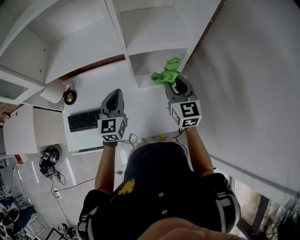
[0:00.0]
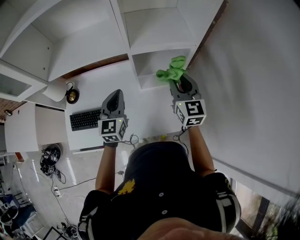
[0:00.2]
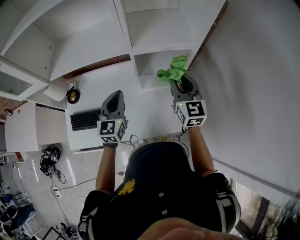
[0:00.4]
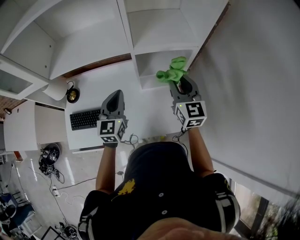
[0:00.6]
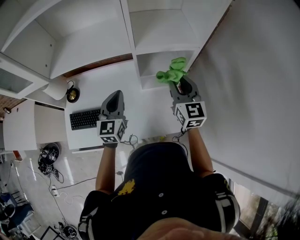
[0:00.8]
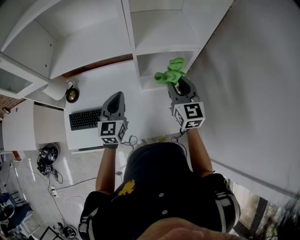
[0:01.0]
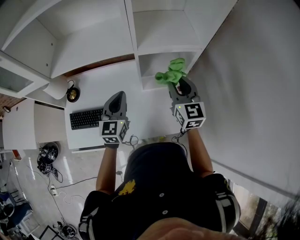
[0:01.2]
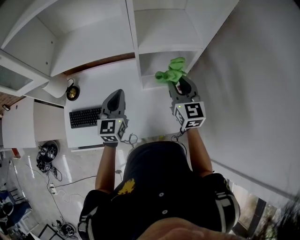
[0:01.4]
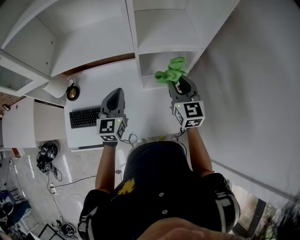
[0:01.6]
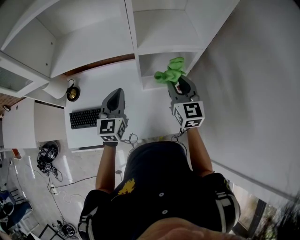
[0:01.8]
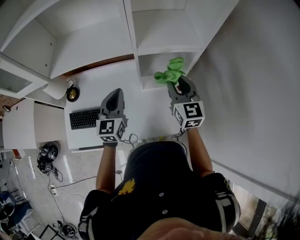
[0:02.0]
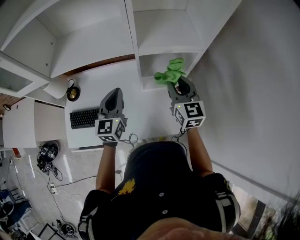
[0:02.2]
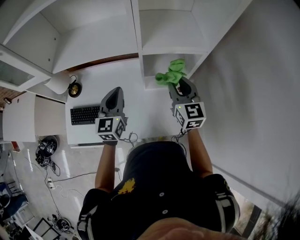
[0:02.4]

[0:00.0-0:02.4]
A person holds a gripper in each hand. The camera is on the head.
0:00.0 to 0:02.4: The grippers stay close to where they were, moving slightly.

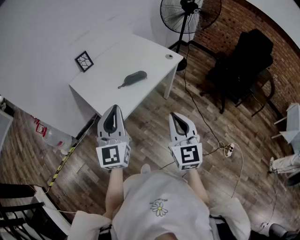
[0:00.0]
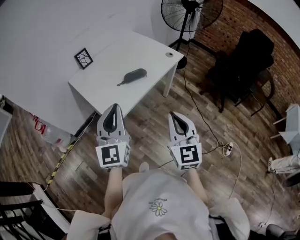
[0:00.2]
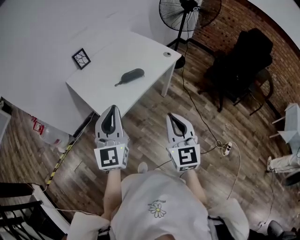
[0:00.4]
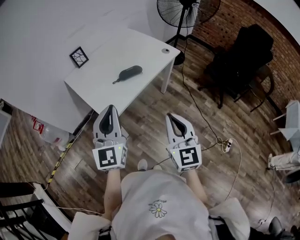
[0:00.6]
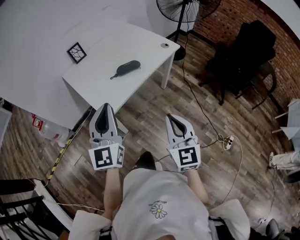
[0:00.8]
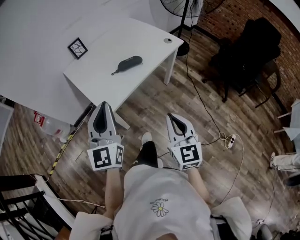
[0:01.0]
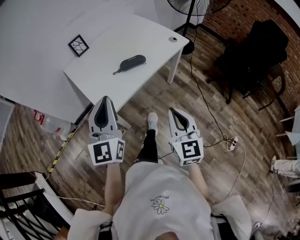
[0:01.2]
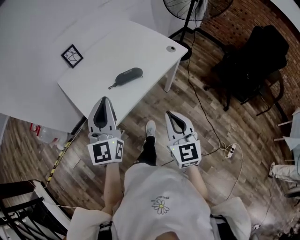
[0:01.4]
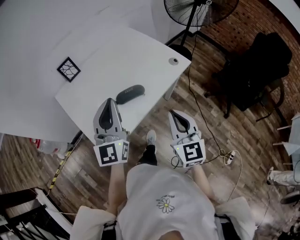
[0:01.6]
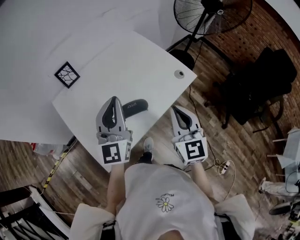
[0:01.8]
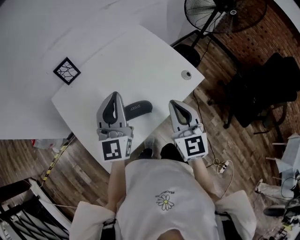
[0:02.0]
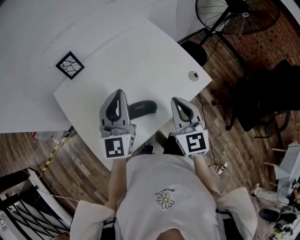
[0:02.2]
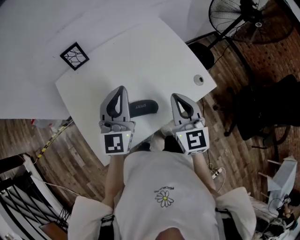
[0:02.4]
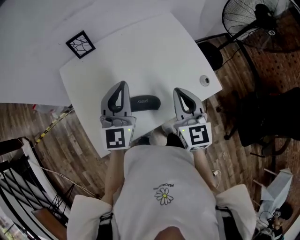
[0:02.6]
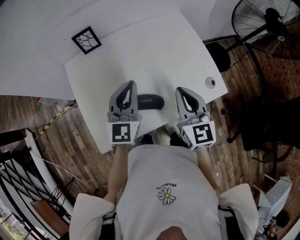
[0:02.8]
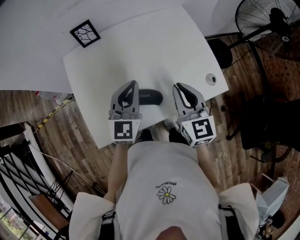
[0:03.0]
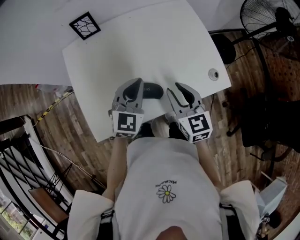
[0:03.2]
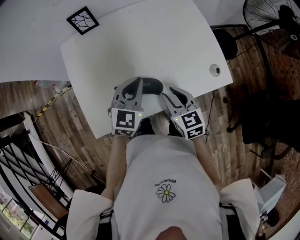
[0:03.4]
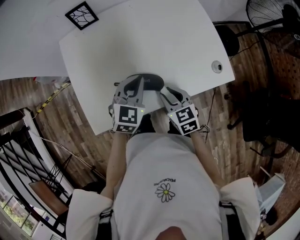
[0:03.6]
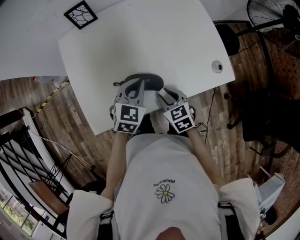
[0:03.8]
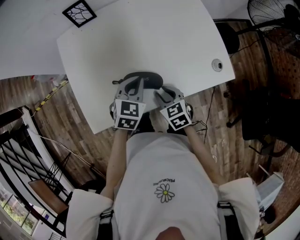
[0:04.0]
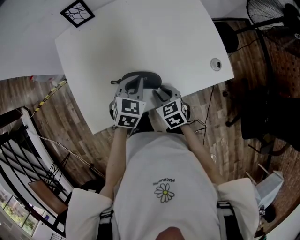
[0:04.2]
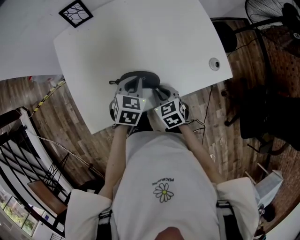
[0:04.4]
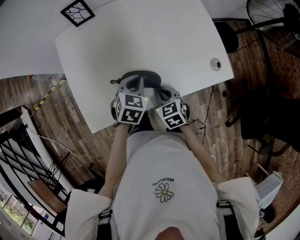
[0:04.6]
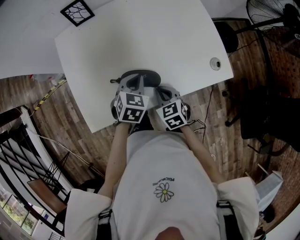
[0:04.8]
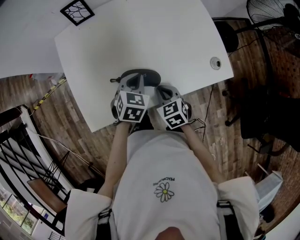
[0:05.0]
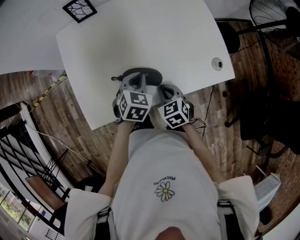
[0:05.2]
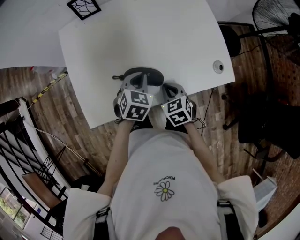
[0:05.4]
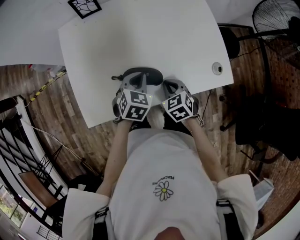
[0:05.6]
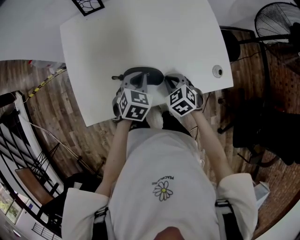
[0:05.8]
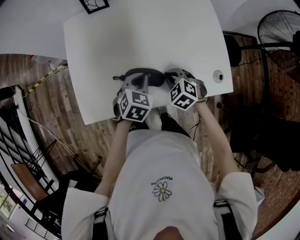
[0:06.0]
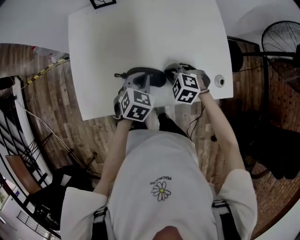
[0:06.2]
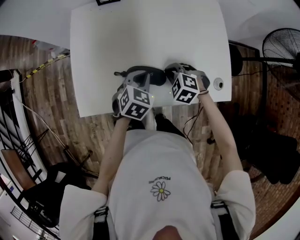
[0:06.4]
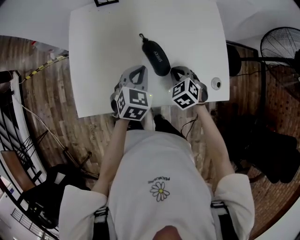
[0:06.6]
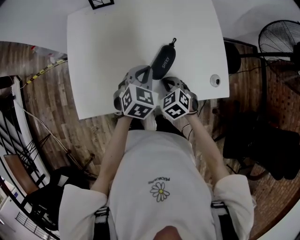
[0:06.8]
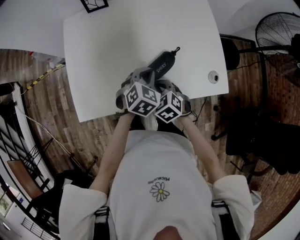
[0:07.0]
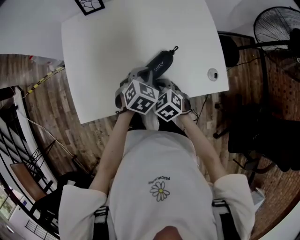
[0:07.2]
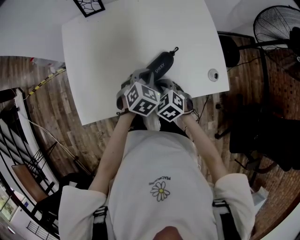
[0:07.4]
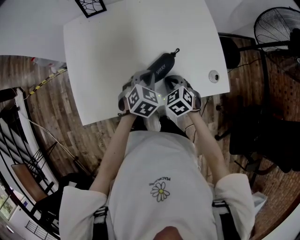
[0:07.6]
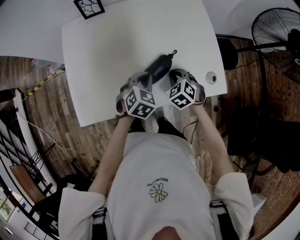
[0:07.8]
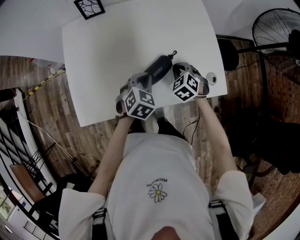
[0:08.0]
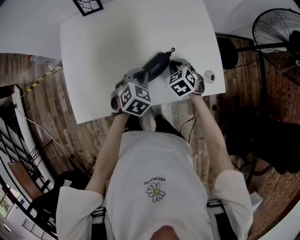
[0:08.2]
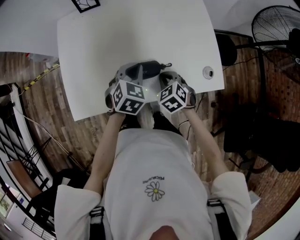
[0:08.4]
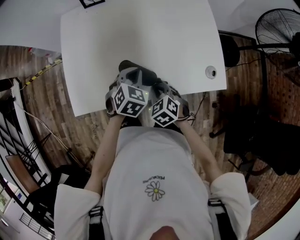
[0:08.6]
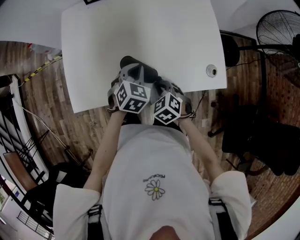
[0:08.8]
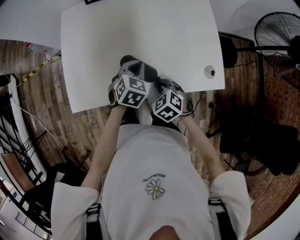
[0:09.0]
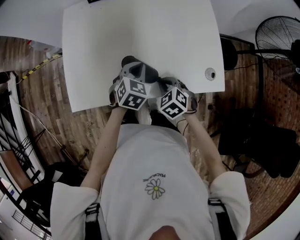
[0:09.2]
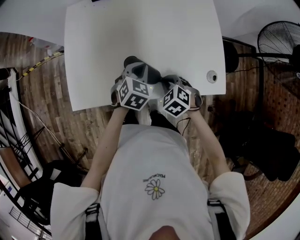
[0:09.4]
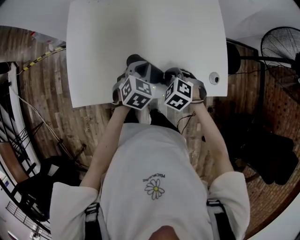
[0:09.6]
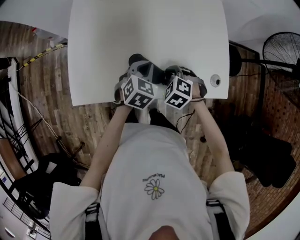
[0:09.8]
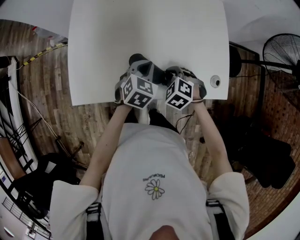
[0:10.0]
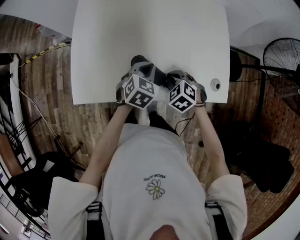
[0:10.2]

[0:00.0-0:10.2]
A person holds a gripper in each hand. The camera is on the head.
0:00.0 to 0:01.4: The left gripper heads forward, covering about 15 cm. The right gripper heads forward and downward, covering some 15 cm.
0:01.4 to 0:03.0: The two grippers go roughly 35 cm forward. The right gripper swivels some 30 degrees; the left gripper swivels about 20 degrees.
0:03.0 to 0:04.4: Both grippers travel together downward, approximately 20 cm. The right gripper tips its fingers downward by roughly 30 degrees. Meanwhile the left gripper tilts its fingers some 40 degrees downward.
0:04.4 to 0:05.8: The right gripper changes place by about 5 cm, and turns by some 30 degrees.
0:07.2 to 0:08.8: The right gripper goes forward and returns, about 10 cm each way.
0:08.8 to 0:10.2: The right gripper moves forward, about 5 cm.

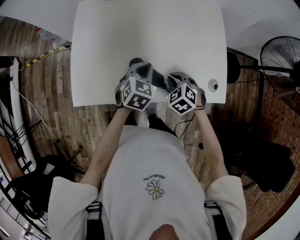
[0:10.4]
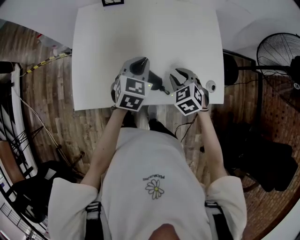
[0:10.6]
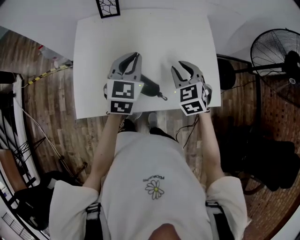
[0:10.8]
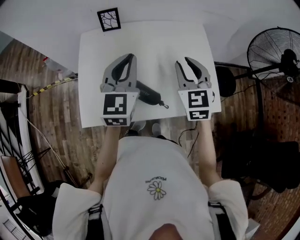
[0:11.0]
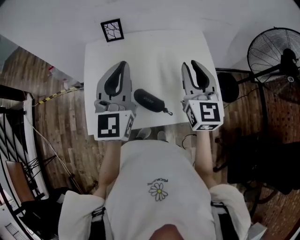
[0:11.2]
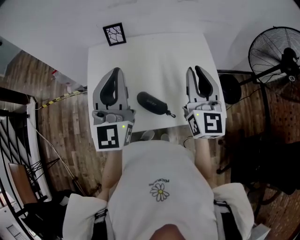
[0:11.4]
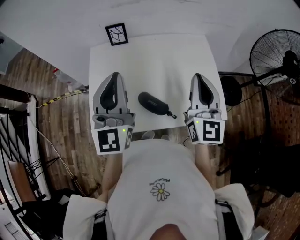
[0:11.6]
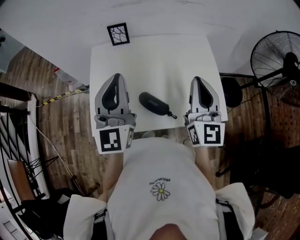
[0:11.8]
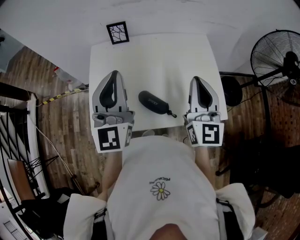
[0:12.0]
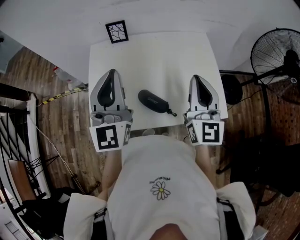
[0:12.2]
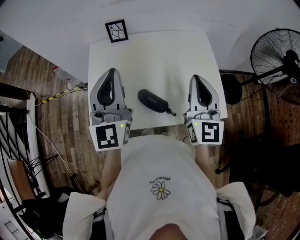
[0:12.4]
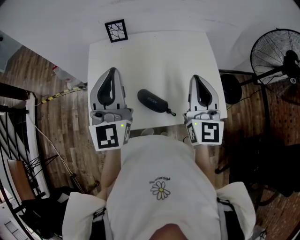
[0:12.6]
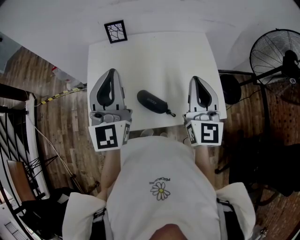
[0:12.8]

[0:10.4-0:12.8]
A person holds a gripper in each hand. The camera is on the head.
0:10.4 to 0:11.6: The grippers both shift upward by approximately 30 cm. The right gripper tilts its fingers about 70 degrees upward, while the left gripper tilts its fingers roughly 60 degrees upward.
0:11.6 to 0:12.8: The grippers move only a little.

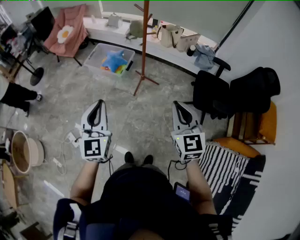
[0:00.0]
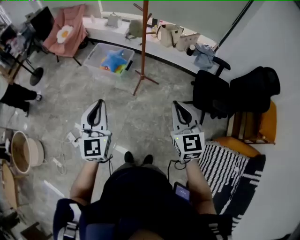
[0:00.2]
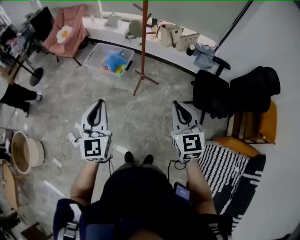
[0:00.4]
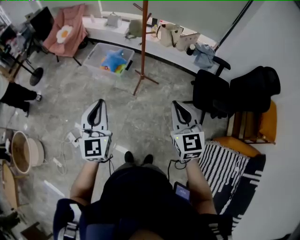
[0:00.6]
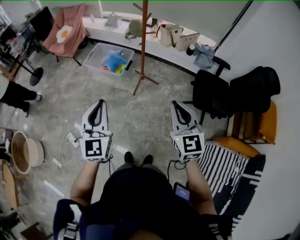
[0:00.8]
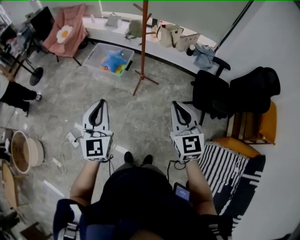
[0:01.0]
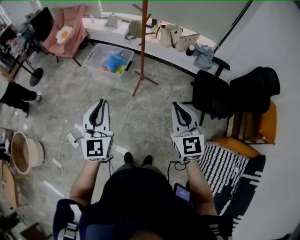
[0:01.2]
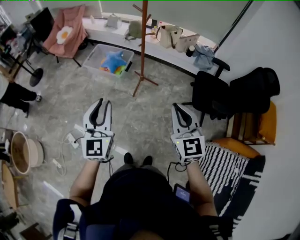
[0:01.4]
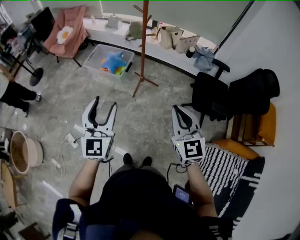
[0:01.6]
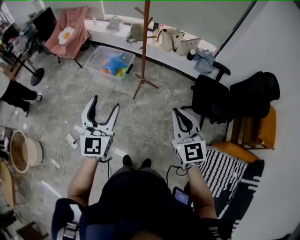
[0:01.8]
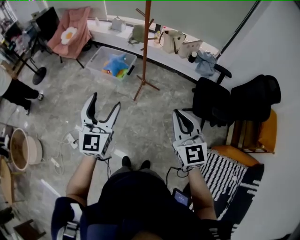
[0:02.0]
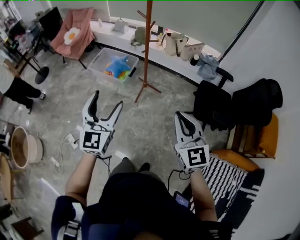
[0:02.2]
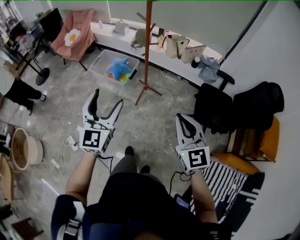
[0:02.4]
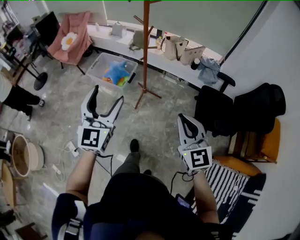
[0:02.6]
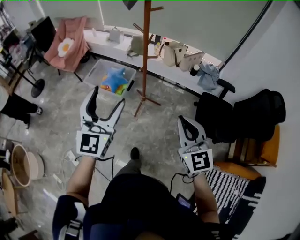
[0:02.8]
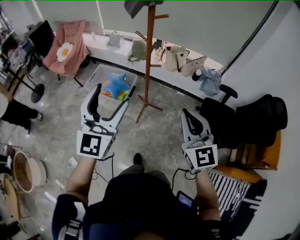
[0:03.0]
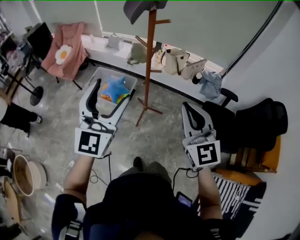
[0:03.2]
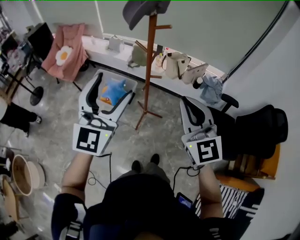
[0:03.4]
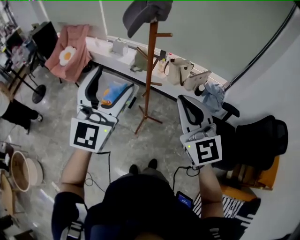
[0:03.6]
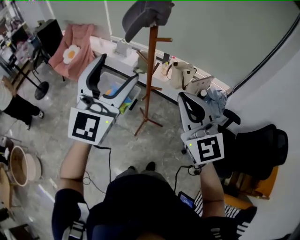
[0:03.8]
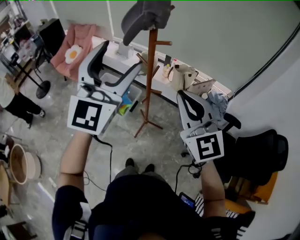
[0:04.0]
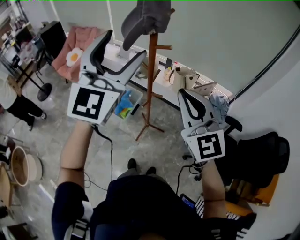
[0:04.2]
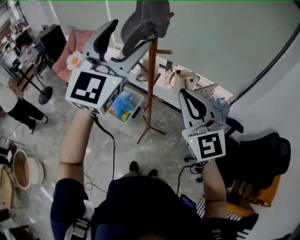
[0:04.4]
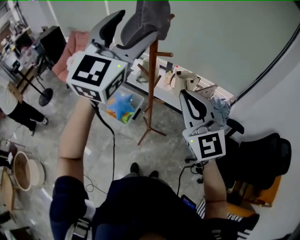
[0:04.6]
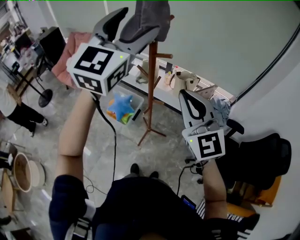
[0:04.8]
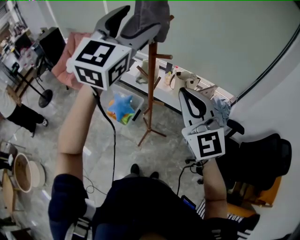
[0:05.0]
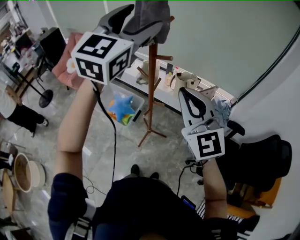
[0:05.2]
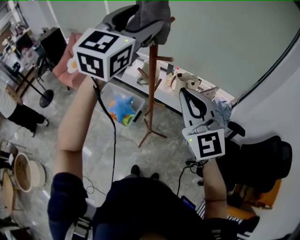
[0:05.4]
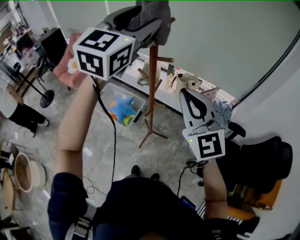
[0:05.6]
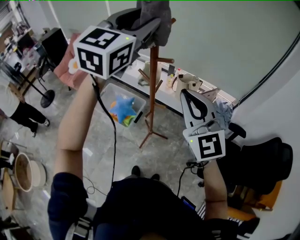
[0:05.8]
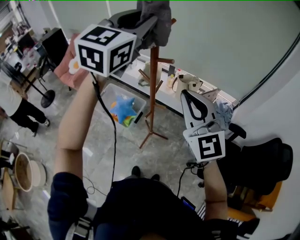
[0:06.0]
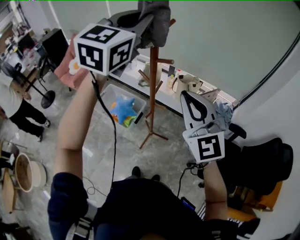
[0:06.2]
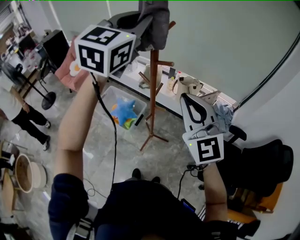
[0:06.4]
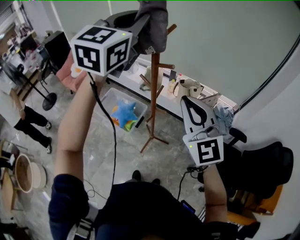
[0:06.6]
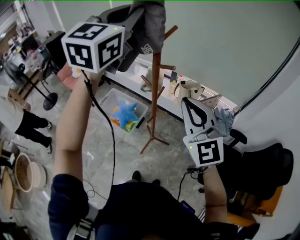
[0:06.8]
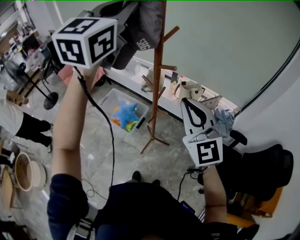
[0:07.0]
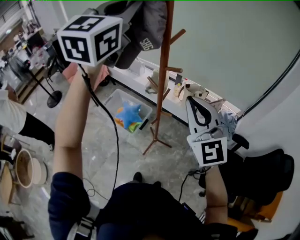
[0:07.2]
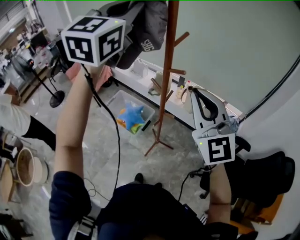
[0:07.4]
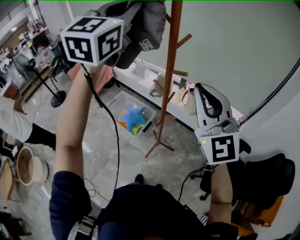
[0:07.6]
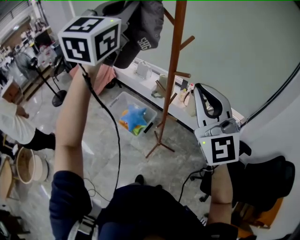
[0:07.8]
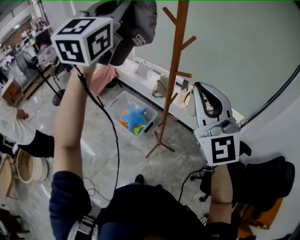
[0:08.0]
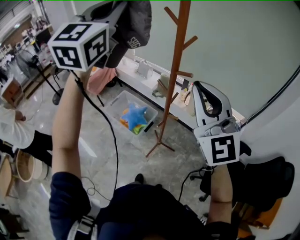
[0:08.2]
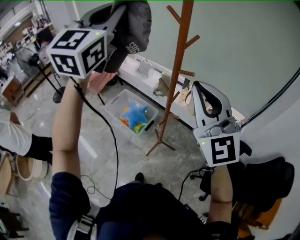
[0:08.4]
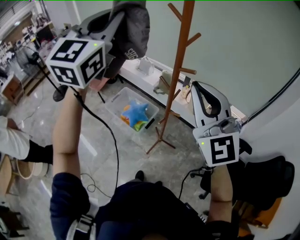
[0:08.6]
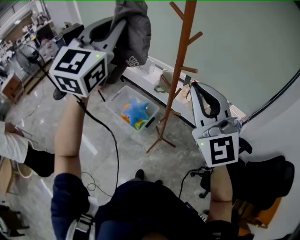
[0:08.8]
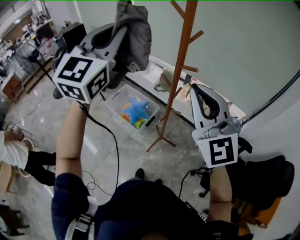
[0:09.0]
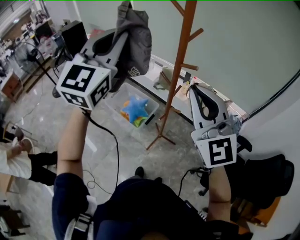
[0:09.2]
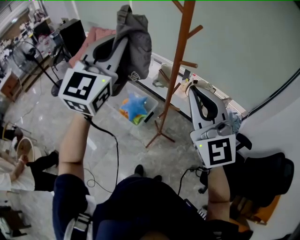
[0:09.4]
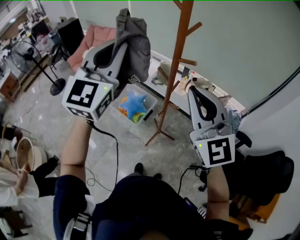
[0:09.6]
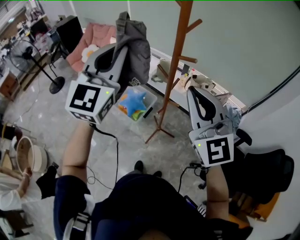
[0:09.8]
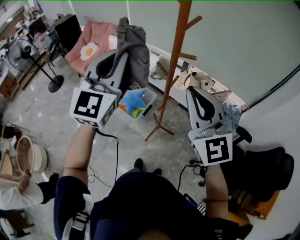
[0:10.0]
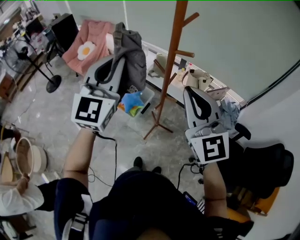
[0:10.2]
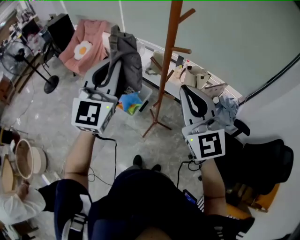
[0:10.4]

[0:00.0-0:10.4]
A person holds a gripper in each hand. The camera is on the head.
0:00.0 to 0:01.4: The grippers stay close to where they were, moving slightly.
0:01.4 to 0:03.0: The grippers both shift forward by roughly 25 cm. The left gripper opens its fingers.
0:03.0 to 0:04.4: Both grippers move forward and upward, roughly 30 cm.
0:04.4 to 0:06.0: The left gripper goes some 10 cm forward, and closes.
0:06.0 to 0:07.4: The left gripper heads upward and to the left, covering about 10 cm, while the right gripper goes some 5 cm upward.
0:07.4 to 0:09.0: The right gripper is displaced to the left by some 5 cm. The left gripper heads to the left, downward and backward, covering roughly 15 cm.
0:09.0 to 0:10.4: The left gripper travels downward by some 15 cm; the right gripper moves downward, roughly 10 cm.
